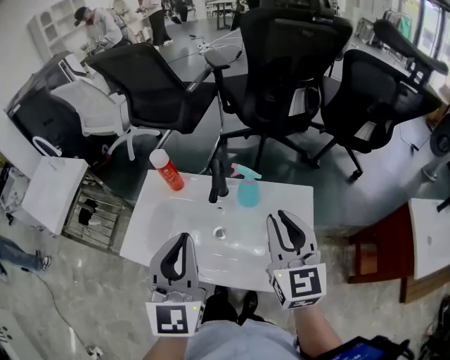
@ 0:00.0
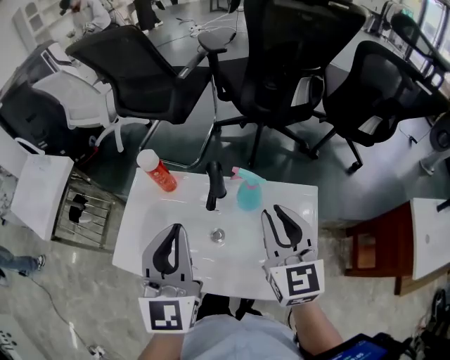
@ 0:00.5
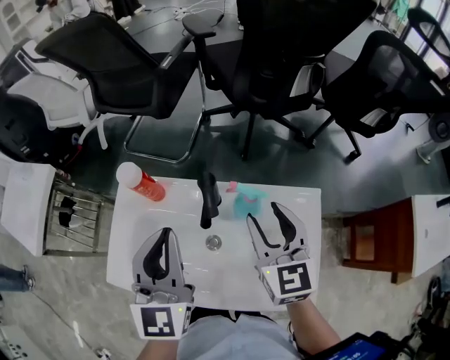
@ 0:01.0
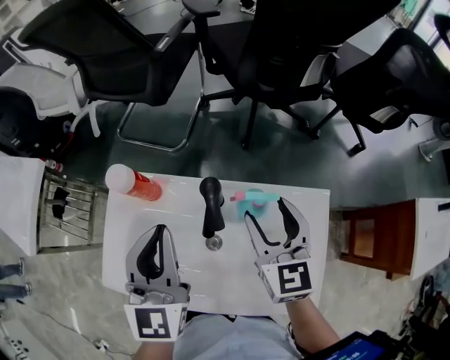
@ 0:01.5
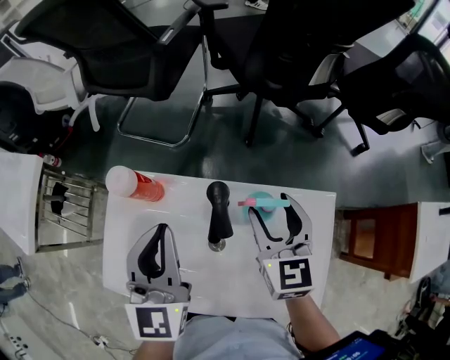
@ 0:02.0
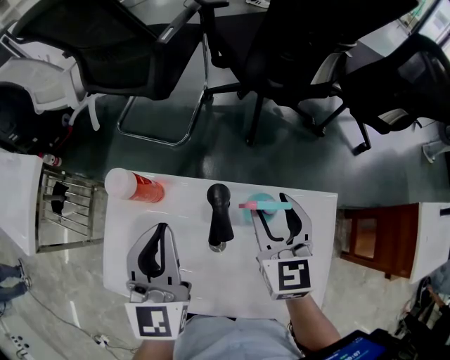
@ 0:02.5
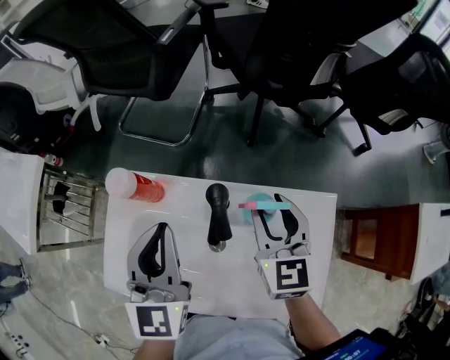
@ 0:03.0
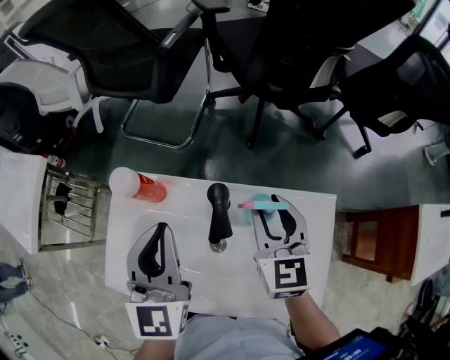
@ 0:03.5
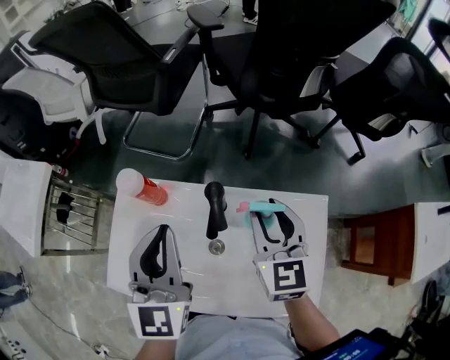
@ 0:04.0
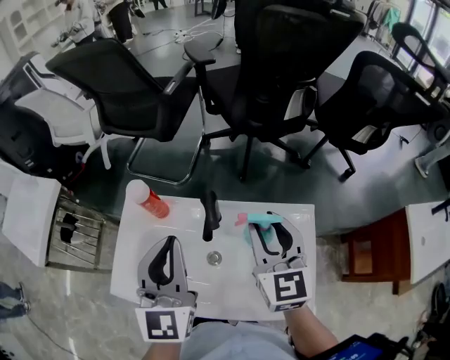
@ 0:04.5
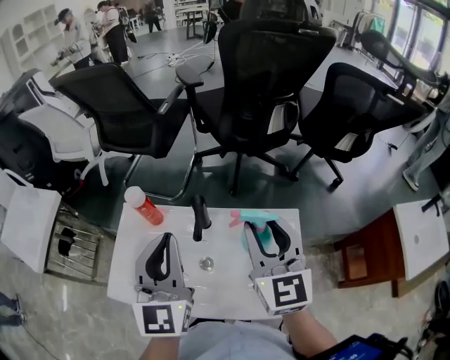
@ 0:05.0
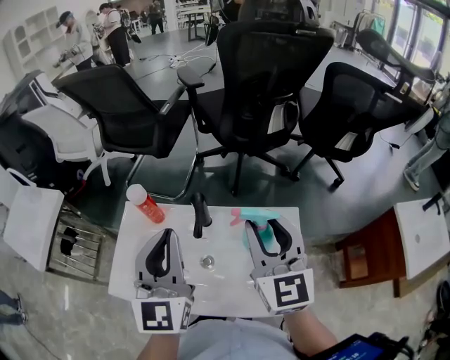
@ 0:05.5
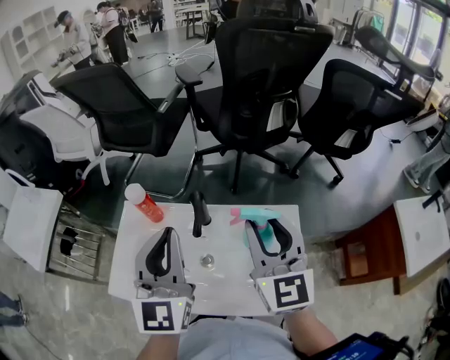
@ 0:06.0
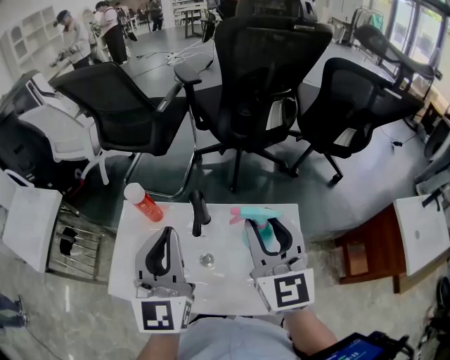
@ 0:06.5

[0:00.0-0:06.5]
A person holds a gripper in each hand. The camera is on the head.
0:00.0 to 0:02.0: Both grippers travel together forward and downward, approximately 25 cm. The right gripper opens its fingers.
0:02.0 to 0:04.5: The two grippers go some 10 cm upward and backward. The right gripper closes its fingers.
0:04.5 to 0:06.5: The right gripper is displaced upward and backward by some 10 cm. Meanwhile the left gripper ends up roughly 5 cm from where it was.

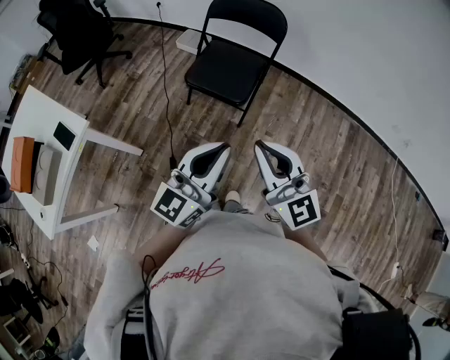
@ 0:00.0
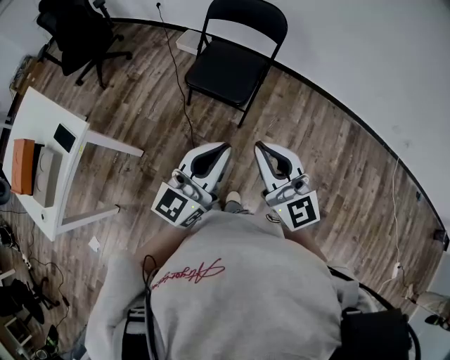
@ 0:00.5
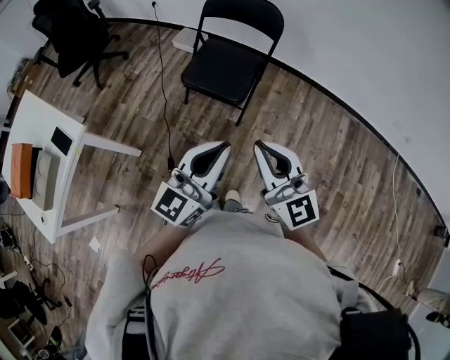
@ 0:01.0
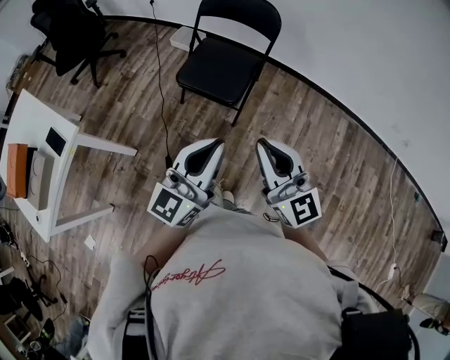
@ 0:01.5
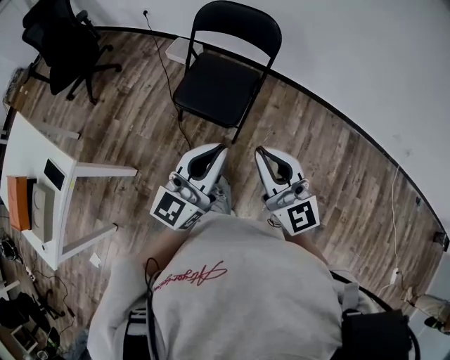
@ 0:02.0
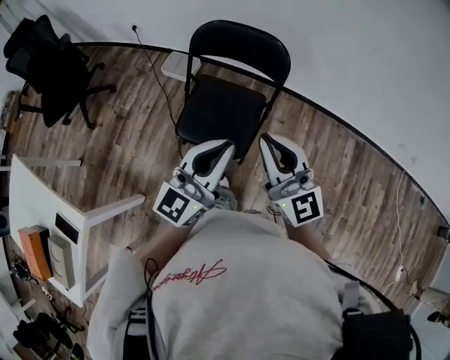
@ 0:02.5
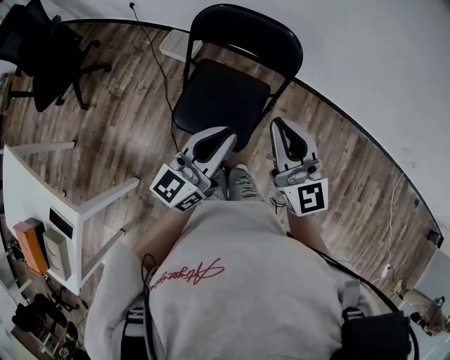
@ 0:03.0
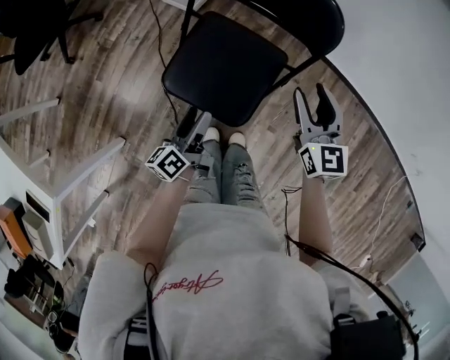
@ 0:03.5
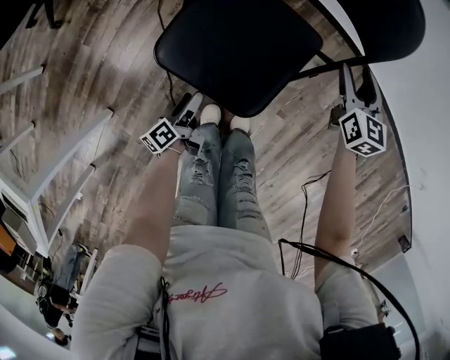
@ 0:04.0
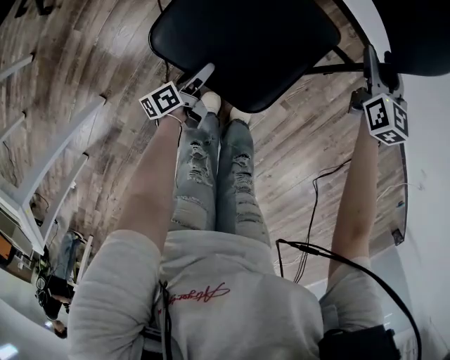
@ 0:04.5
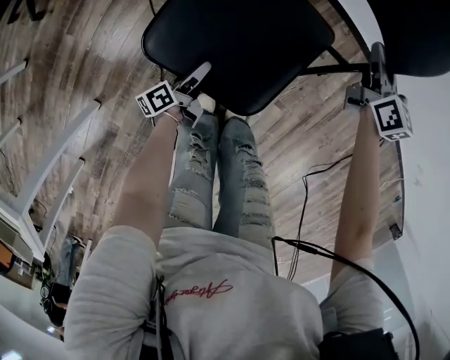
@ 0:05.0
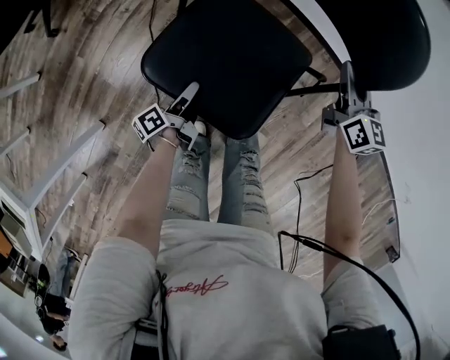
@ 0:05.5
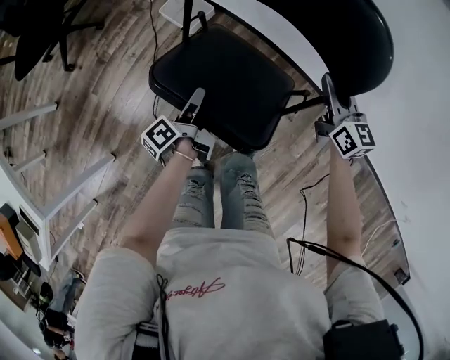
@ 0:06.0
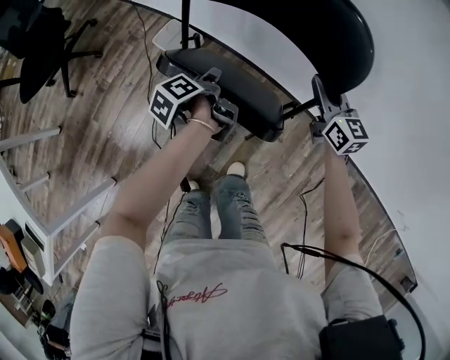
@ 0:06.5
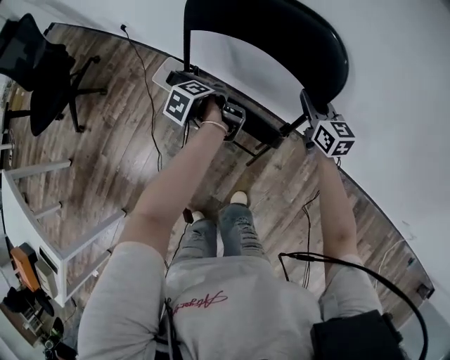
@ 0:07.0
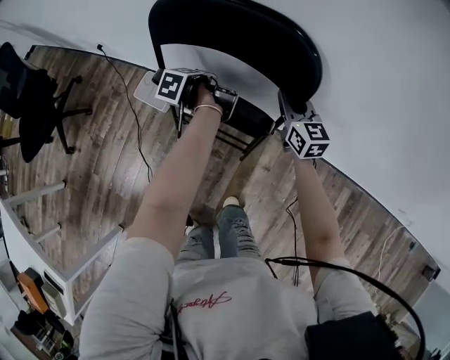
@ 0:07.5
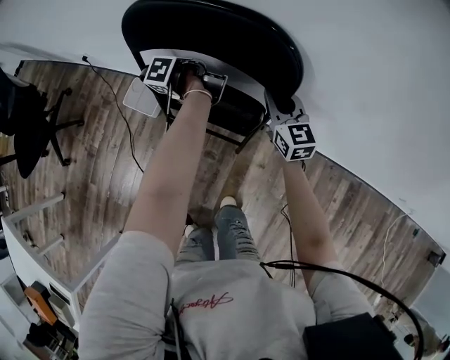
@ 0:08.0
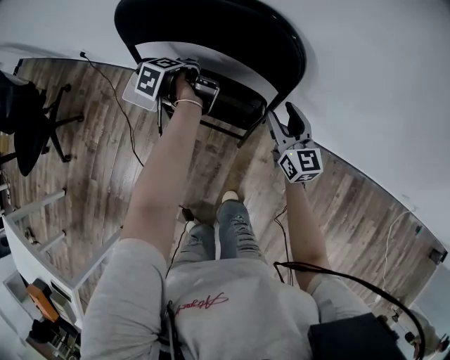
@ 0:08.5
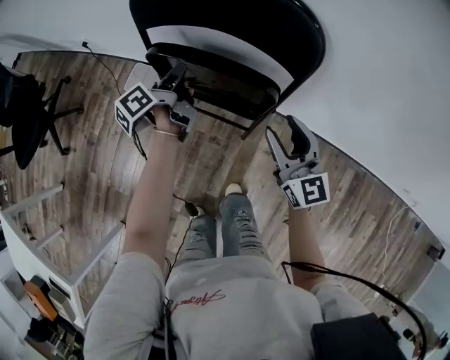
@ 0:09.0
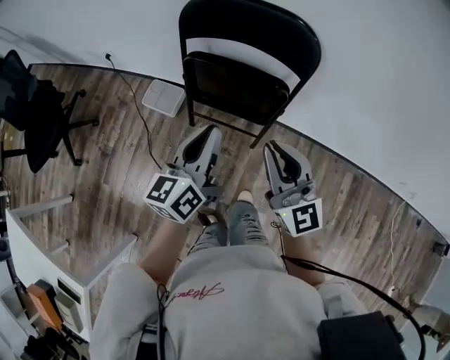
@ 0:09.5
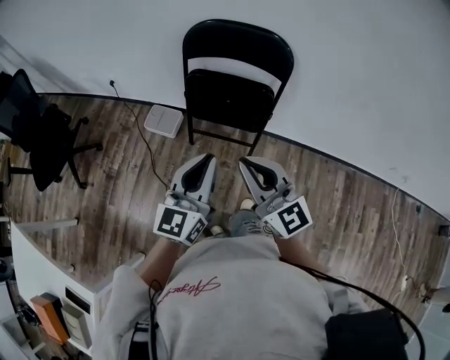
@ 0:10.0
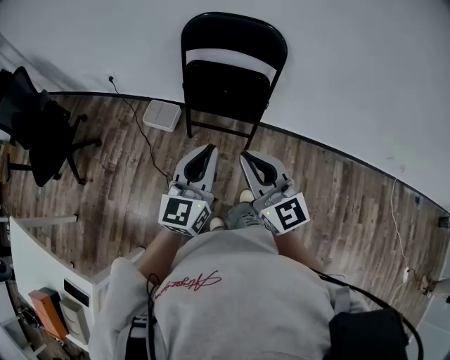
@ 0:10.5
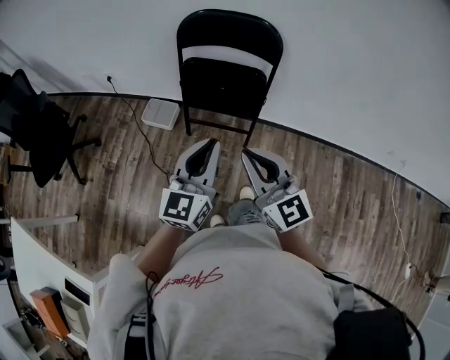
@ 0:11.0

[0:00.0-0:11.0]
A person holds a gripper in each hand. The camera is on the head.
0:00.0 to 0:02.0: The two grippers go roughly 15 cm forward.
0:02.0 to 0:03.5: The right gripper moves forward and downward, some 40 cm, rotates approximately 30 degrees, and opens. Meanwhile the left gripper heads downward and forward, covering about 40 cm, twists roughly 50 degrees counterclockwise, seen from behind, and opens its fingers.
0:03.5 to 0:05.5: The right gripper heads forward and downward, covering some 20 cm, and closes its fingers; the left gripper moves downward and forward, approximately 20 cm, and turns by approximately 30 degrees.
0:05.5 to 0:07.5: The right gripper shifts approximately 25 cm forward, to the right and upward, while the left gripper goes approximately 50 cm forward, to the right and upward, and angles its fingers downward, by roughly 30 degrees.
0:07.5 to 0:09.0: The right gripper heads backward, covering some 15 cm, and opens. The left gripper is displaced upward by approximately 5 cm, and angles its fingers upward, by approximately 40 degrees.
0:09.0 to 0:11.0: The right gripper moves backward, upward and to the left, approximately 40 cm, and closes its fingers. Meanwhile the left gripper travels backward and upward by roughly 50 cm, and rolls clockwise, seen from behind, by about 70 degrees.

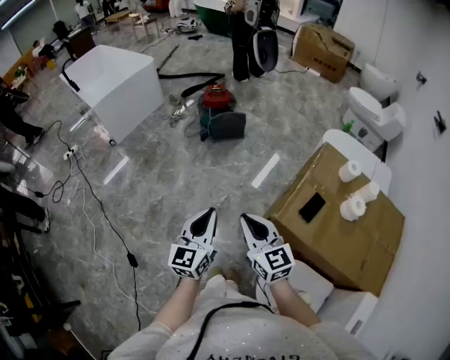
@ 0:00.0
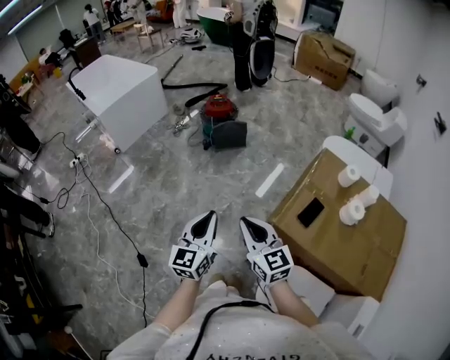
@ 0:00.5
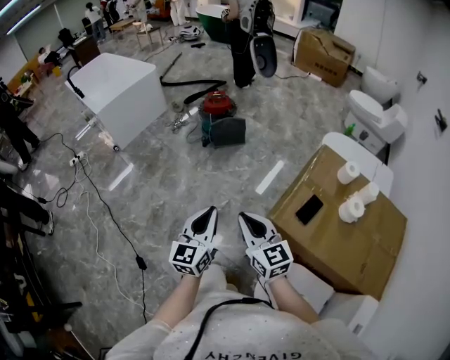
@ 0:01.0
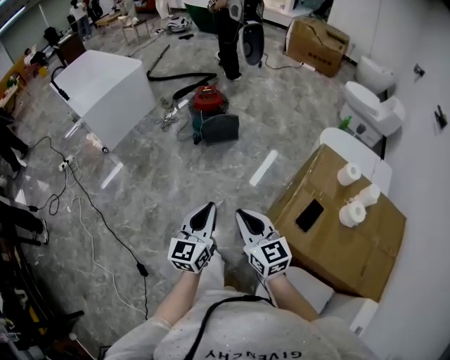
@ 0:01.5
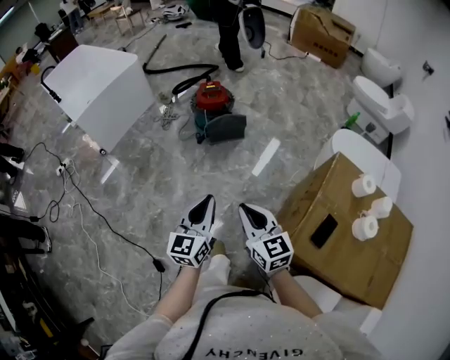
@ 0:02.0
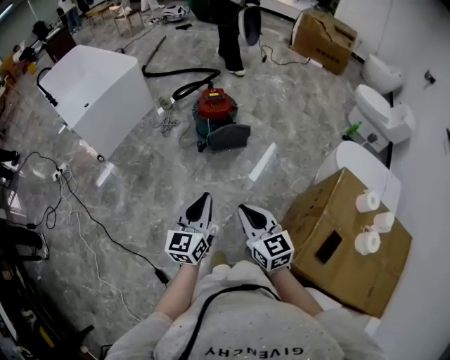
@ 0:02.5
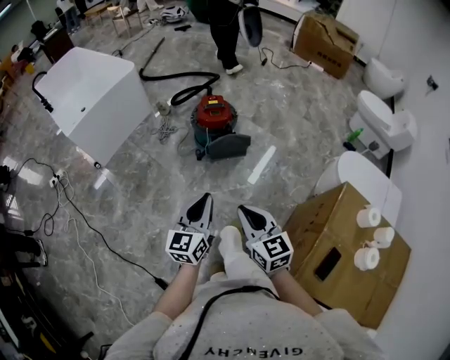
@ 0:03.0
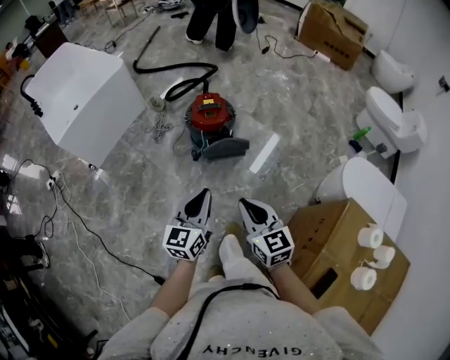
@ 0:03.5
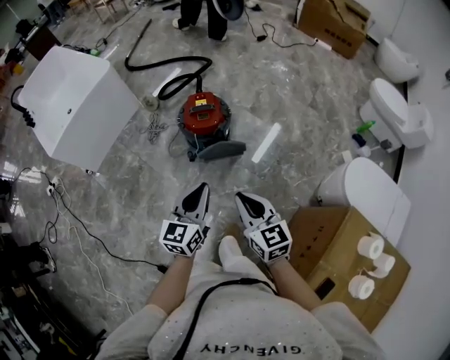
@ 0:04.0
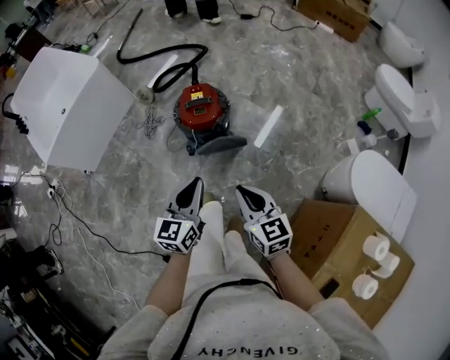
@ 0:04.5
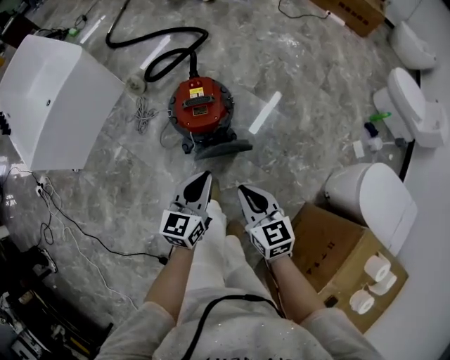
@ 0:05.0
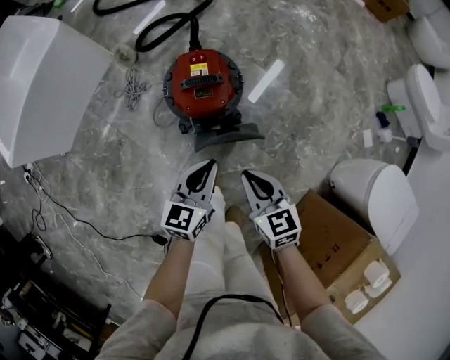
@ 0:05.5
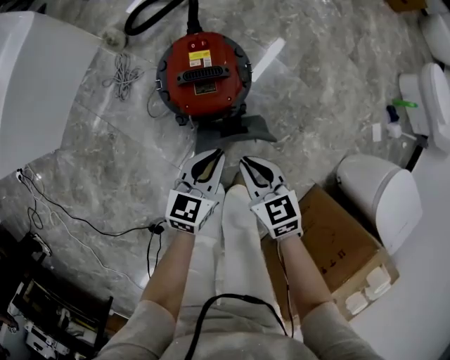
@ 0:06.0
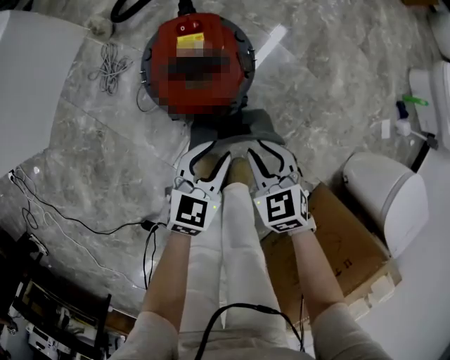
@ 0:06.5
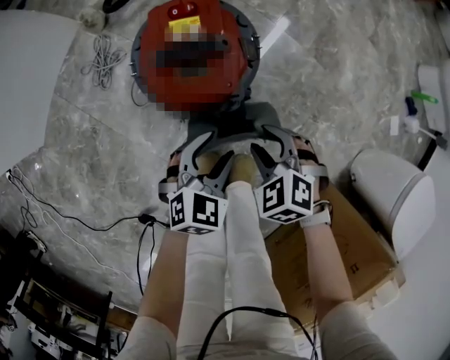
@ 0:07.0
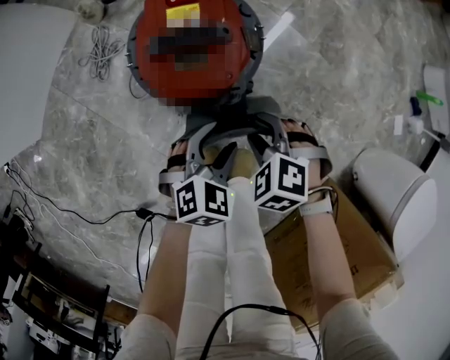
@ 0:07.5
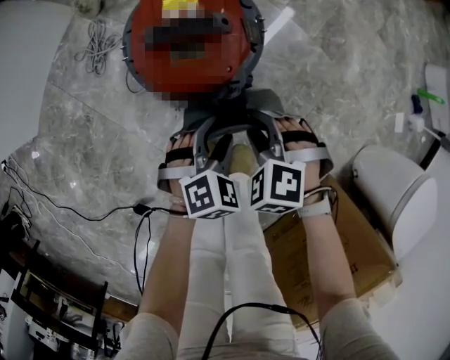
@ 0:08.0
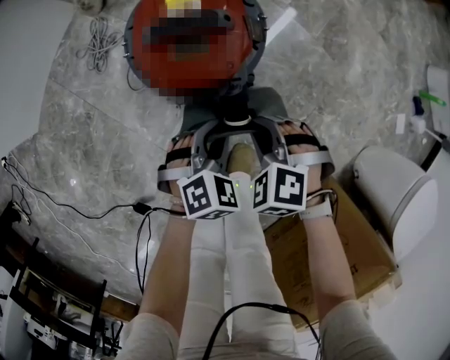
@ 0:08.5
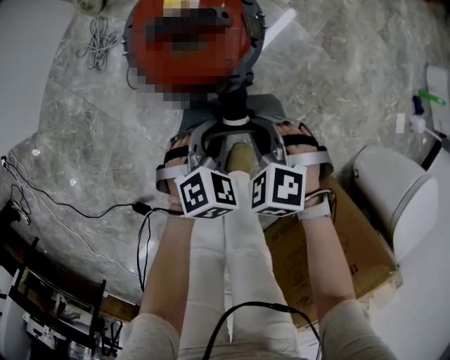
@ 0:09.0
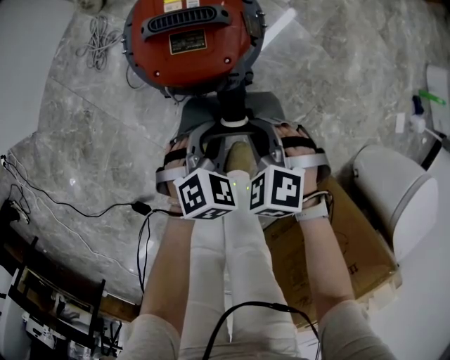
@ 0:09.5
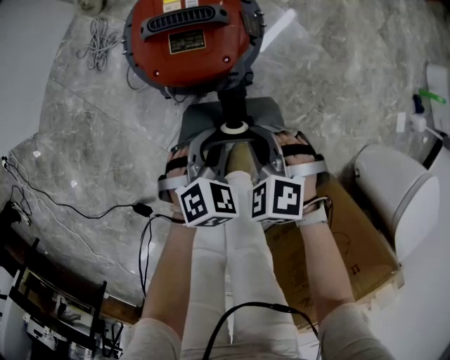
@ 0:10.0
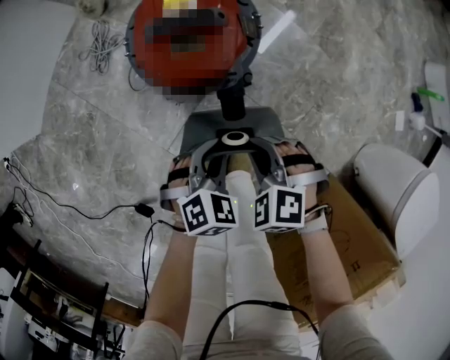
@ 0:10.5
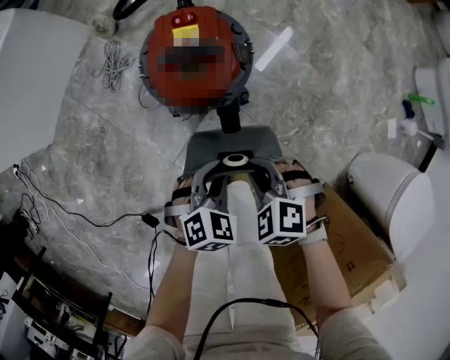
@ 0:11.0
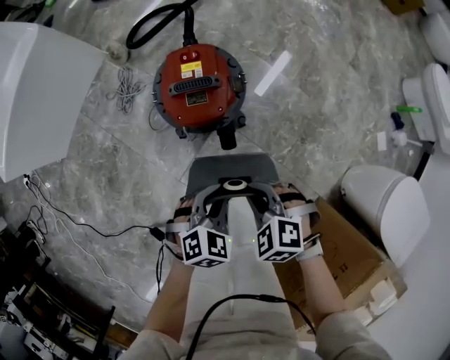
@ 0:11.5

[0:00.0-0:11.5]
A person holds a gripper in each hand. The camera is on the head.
0:00.0 to 0:02.0: The two grippers go some 20 cm forward.
0:02.0 to 0:04.0: The grippers both shift forward by some 35 cm.
0:04.0 to 0:06.0: Both grippers move downward and forward, some 35 cm. The left gripper turns by roughly 20 degrees. The right gripper swivels approximately 20 degrees.
0:06.0 to 0:07.5: The two grippers go about 15 cm downward. The right gripper rotates around the line of its fingers by roughly 40 degrees, counterclockwise from behind, and opens its fingers; the left gripper swivels approximately 40 degrees, and opens.
0:07.5 to 0:09.5: The left gripper closes; the right gripper closes up.
0:09.5 to 0:11.5: Both grippers move upward and backward, roughly 15 cm.
